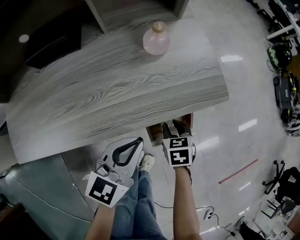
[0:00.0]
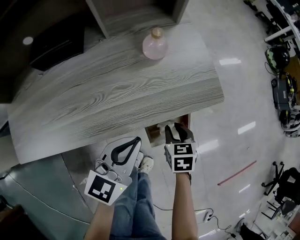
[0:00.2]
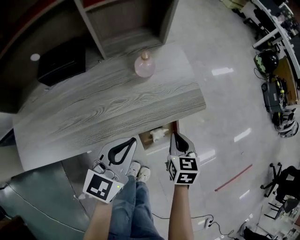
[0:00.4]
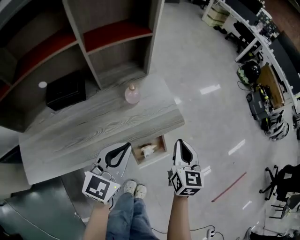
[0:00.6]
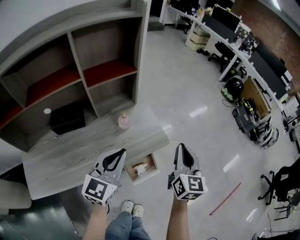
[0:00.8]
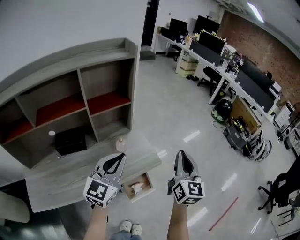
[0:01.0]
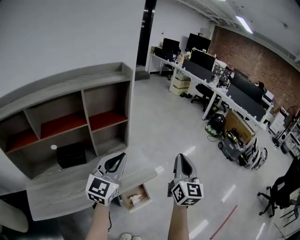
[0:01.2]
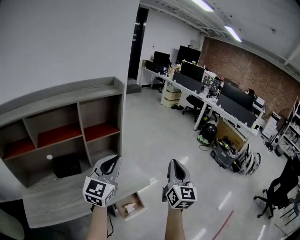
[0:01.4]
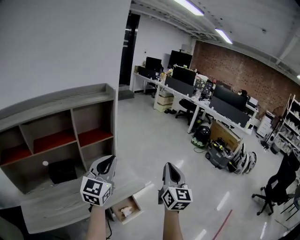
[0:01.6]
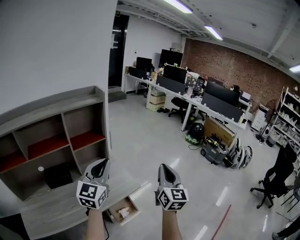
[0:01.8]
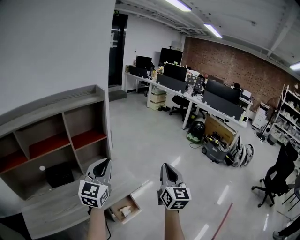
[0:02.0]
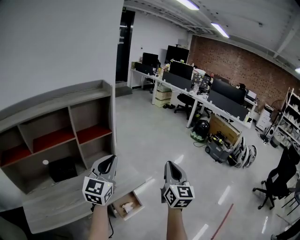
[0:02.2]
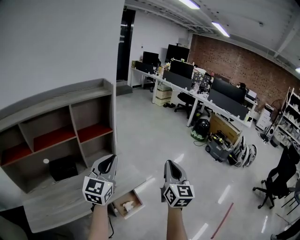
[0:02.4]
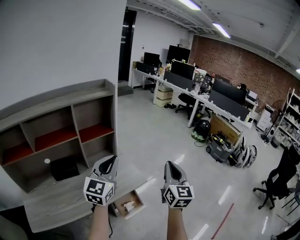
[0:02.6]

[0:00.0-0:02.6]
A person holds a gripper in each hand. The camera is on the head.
0.0 to 1.2 s: Both grippers move upward, roughly 50 cm. The left gripper swivels some 30 degrees. Meanwhile the right gripper points its fingers about 70 degrees further upward, and closes.
1.2 to 2.6 s: The right gripper shifts by about 5 cm.

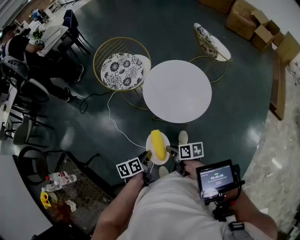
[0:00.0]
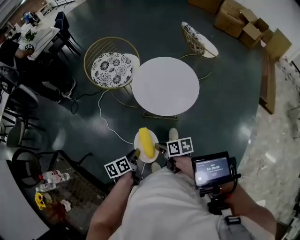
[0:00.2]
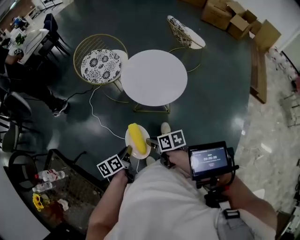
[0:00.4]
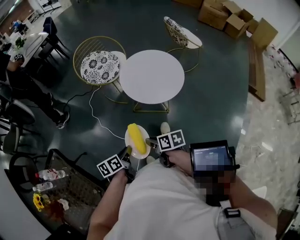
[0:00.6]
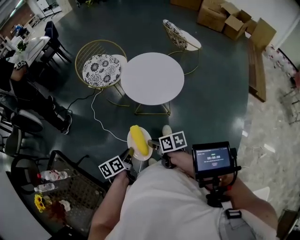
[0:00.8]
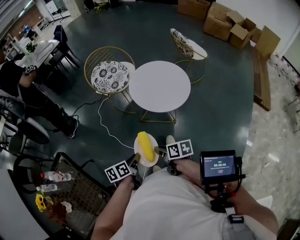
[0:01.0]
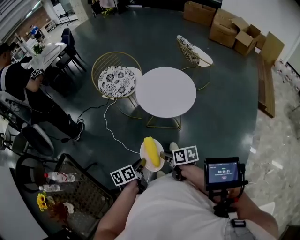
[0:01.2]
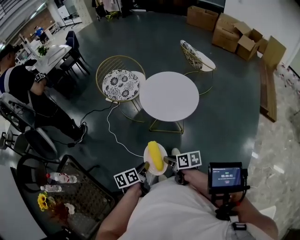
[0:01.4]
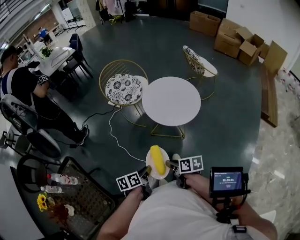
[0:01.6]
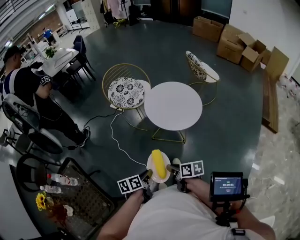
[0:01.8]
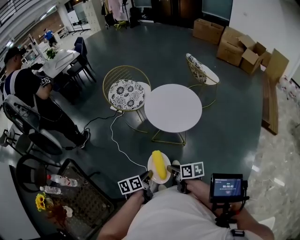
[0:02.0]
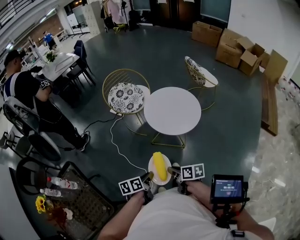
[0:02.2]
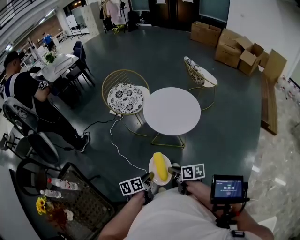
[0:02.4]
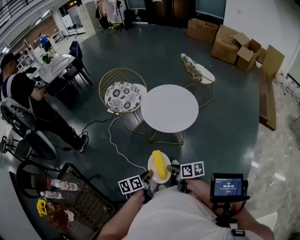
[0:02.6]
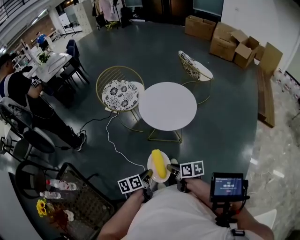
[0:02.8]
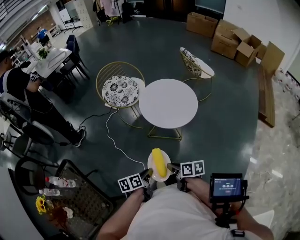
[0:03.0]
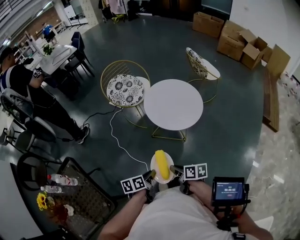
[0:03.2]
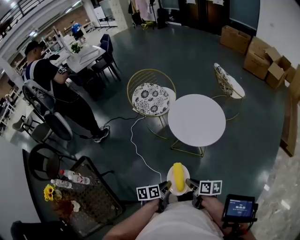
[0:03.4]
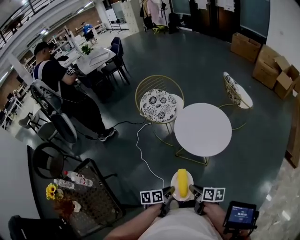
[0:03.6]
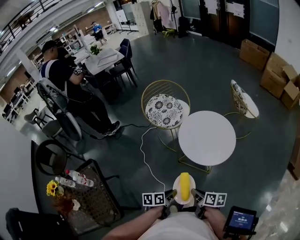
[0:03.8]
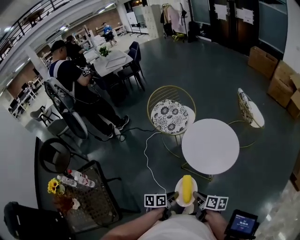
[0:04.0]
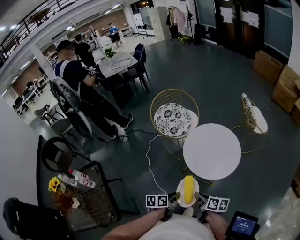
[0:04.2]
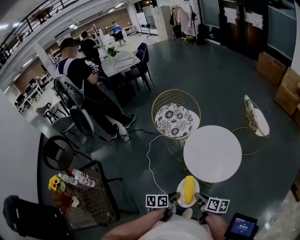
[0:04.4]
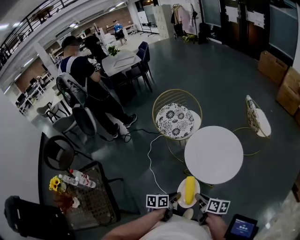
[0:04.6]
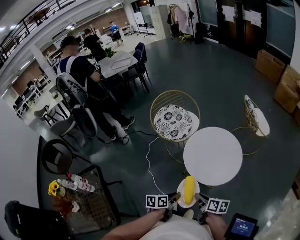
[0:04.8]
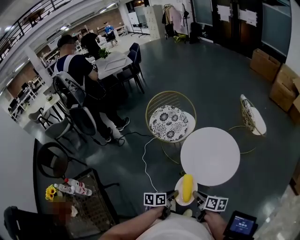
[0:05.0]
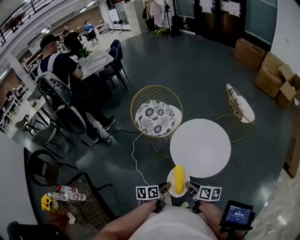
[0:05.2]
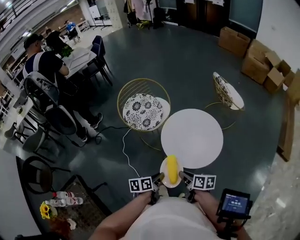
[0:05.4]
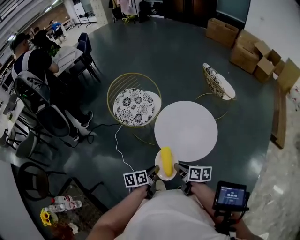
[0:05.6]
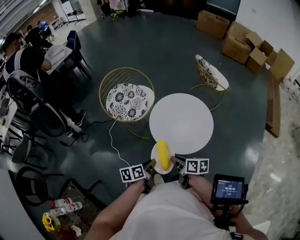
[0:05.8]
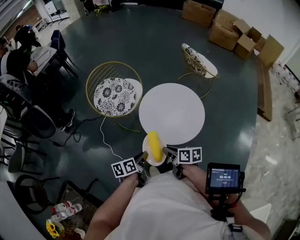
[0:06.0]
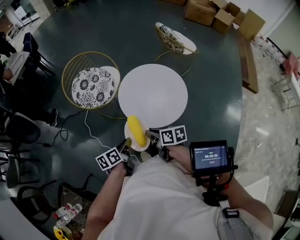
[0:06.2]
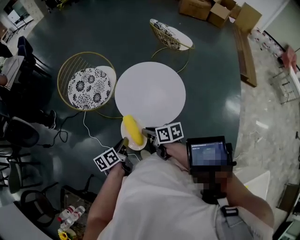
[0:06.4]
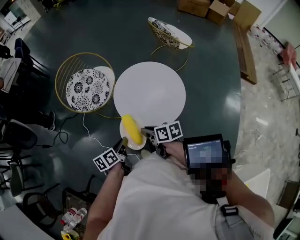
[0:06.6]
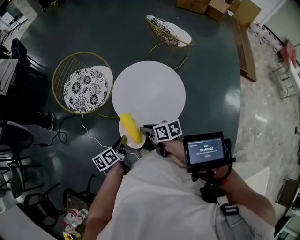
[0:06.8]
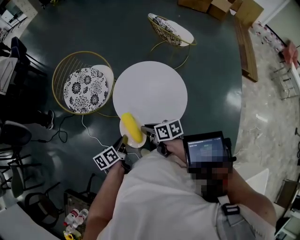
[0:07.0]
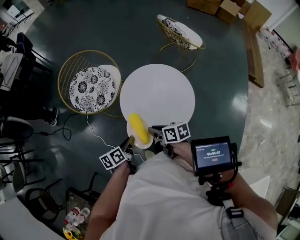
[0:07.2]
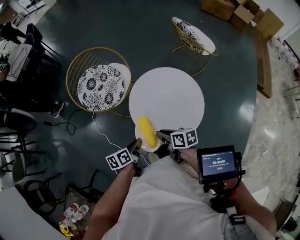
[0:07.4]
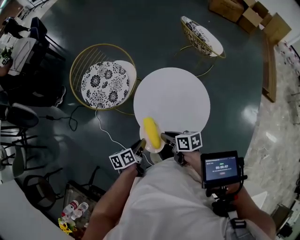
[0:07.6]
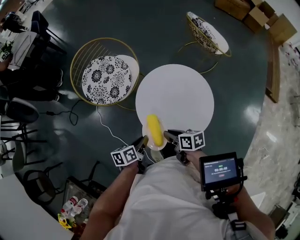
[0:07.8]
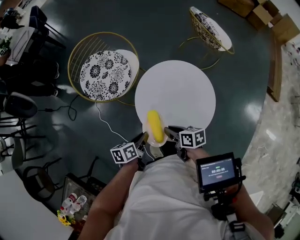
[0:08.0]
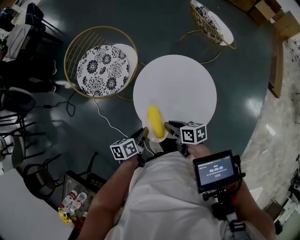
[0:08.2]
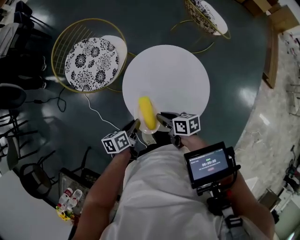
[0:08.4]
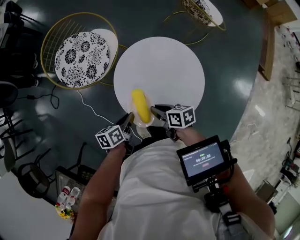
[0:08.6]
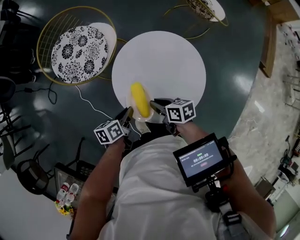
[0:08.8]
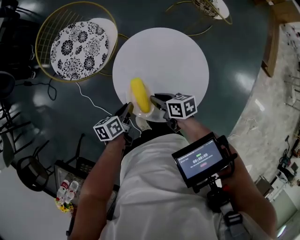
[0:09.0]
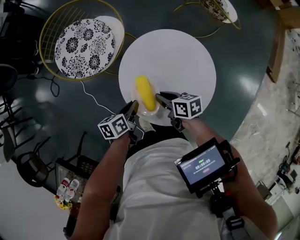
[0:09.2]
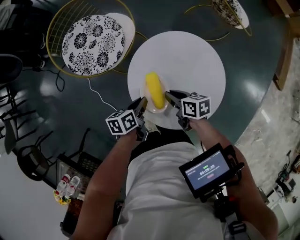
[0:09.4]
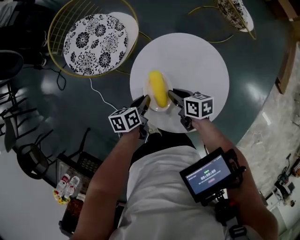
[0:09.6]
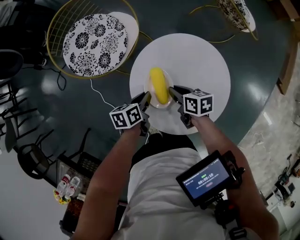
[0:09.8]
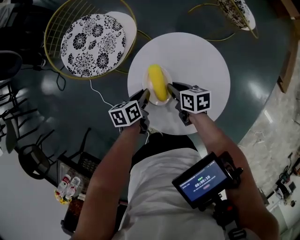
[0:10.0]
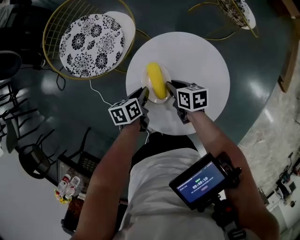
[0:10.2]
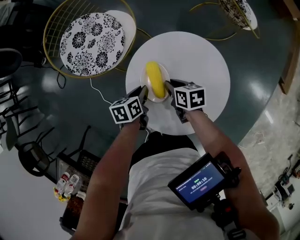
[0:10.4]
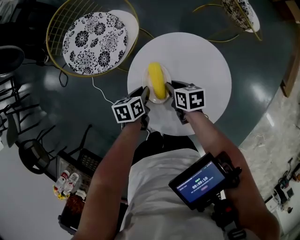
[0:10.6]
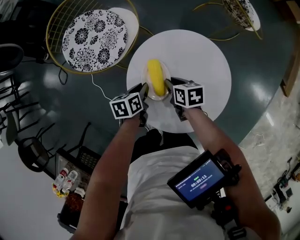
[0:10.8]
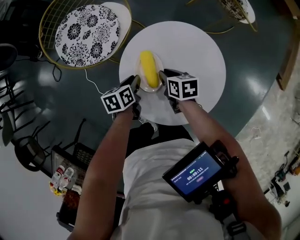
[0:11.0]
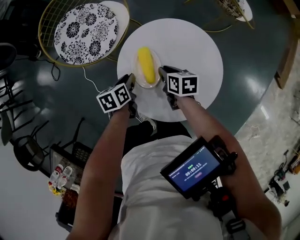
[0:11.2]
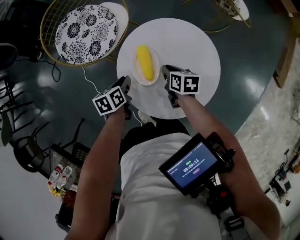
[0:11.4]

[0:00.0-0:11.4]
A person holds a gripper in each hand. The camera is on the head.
0.0 to 1.4 s: The right gripper is displaced backward and upward by approximately 15 cm; the left gripper is displaced backward by roughly 15 cm.
1.4 to 2.8 s: The grippers make only small movements.
2.8 to 4.2 s: Both grippers travel together forward and to the right, roughly 10 cm.
4.2 to 5.6 s: Both grippers move forward, roughly 15 cm.
5.6 to 7.2 s: The grippers both shift forward by roughly 10 cm.
7.2 to 8.6 s: Both grippers travel together downward and forward, approximately 10 cm.
8.6 to 10.0 s: Both grippers move forward and downward, approximately 15 cm.
10.0 to 11.4 s: The grippers make only small movements.

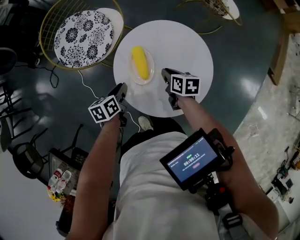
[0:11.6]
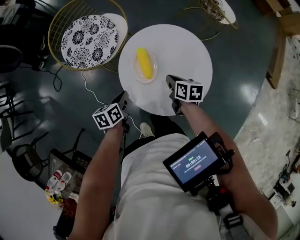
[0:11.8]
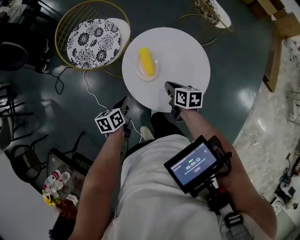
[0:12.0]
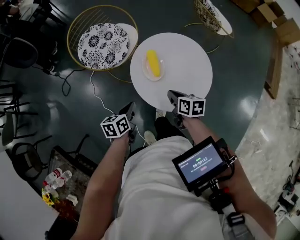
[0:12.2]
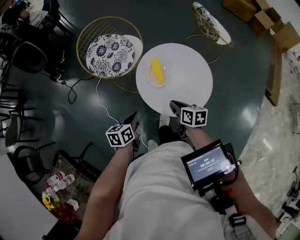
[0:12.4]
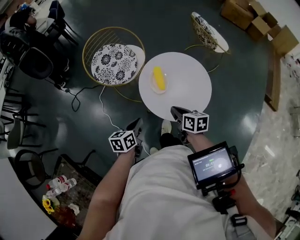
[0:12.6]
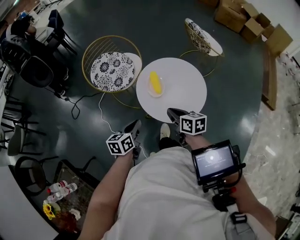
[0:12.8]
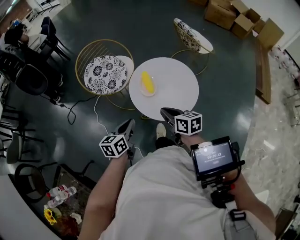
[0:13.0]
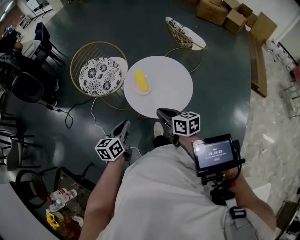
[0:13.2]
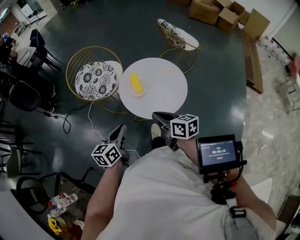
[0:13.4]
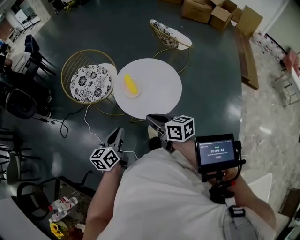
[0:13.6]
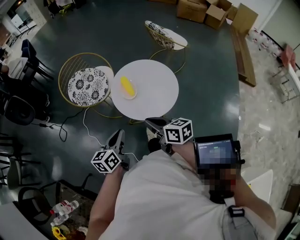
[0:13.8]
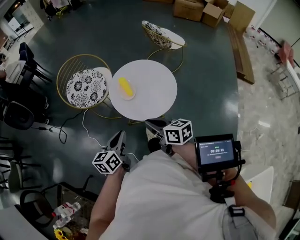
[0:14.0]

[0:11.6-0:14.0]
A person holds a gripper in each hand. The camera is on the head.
11.6 to 12.8 s: The two grippers go some 25 cm backward and upward. The left gripper swivels about 20 degrees. The right gripper changes its angle by roughly 20 degrees.
12.8 to 14.0 s: The two grippers go approximately 10 cm backward and upward.

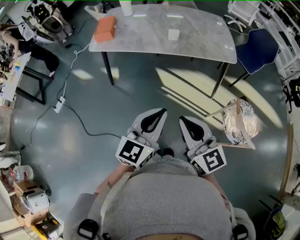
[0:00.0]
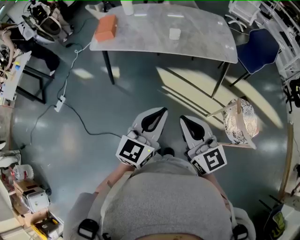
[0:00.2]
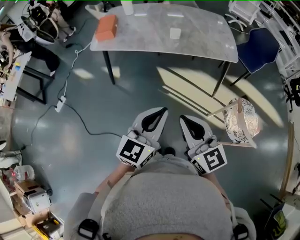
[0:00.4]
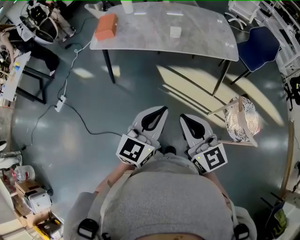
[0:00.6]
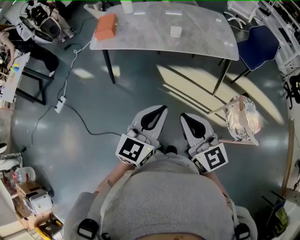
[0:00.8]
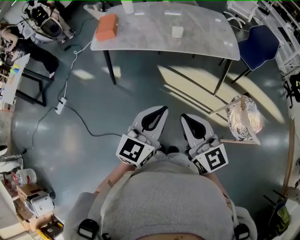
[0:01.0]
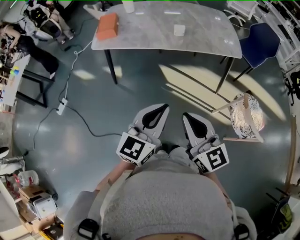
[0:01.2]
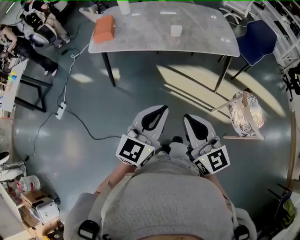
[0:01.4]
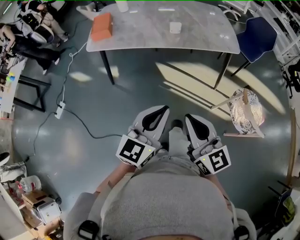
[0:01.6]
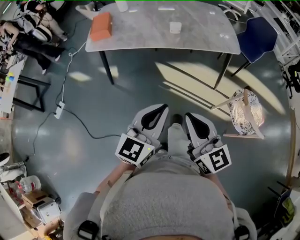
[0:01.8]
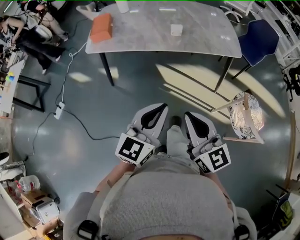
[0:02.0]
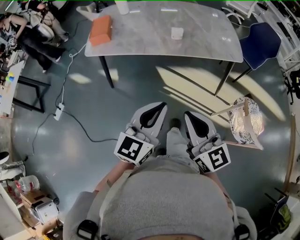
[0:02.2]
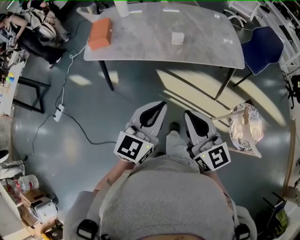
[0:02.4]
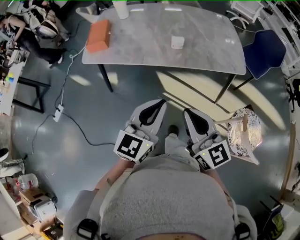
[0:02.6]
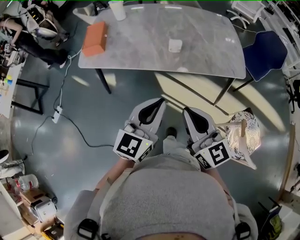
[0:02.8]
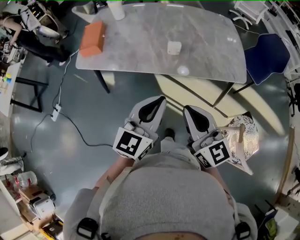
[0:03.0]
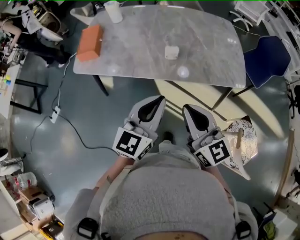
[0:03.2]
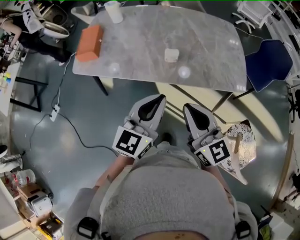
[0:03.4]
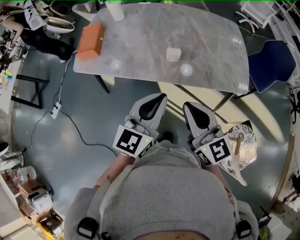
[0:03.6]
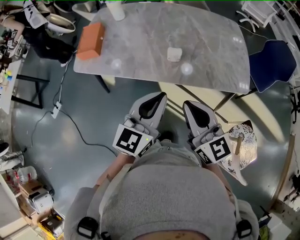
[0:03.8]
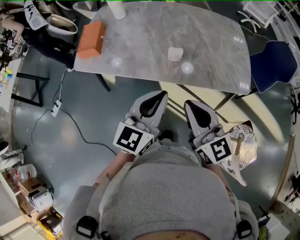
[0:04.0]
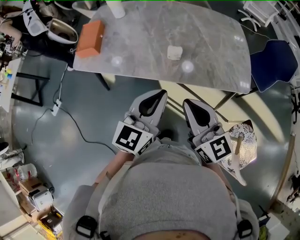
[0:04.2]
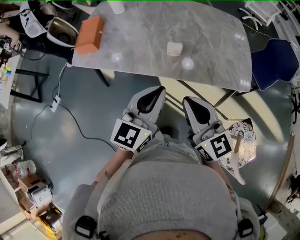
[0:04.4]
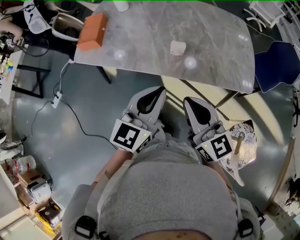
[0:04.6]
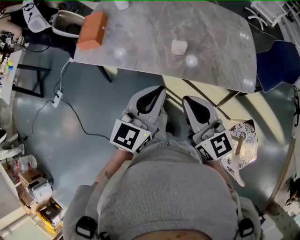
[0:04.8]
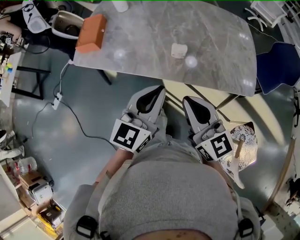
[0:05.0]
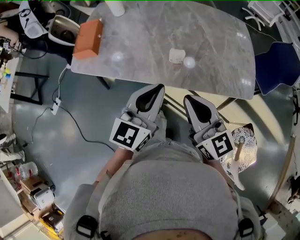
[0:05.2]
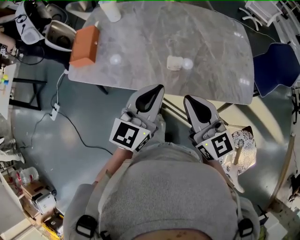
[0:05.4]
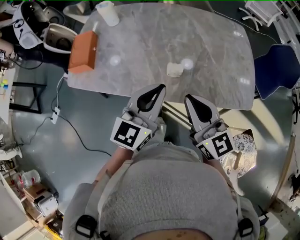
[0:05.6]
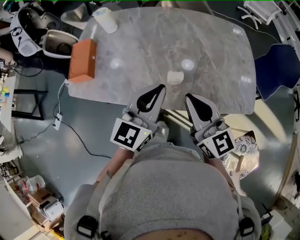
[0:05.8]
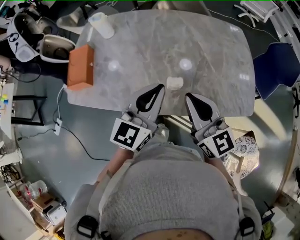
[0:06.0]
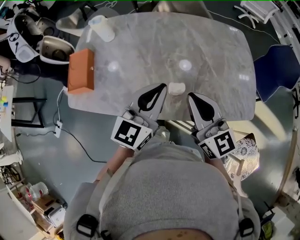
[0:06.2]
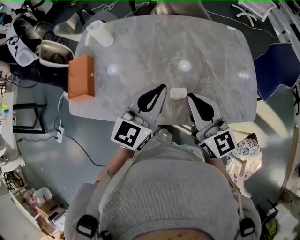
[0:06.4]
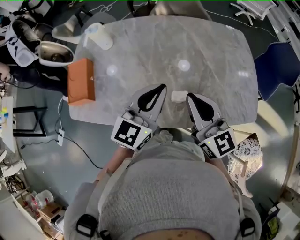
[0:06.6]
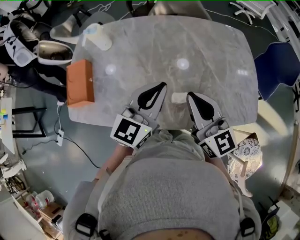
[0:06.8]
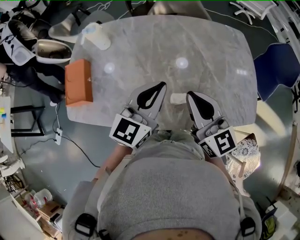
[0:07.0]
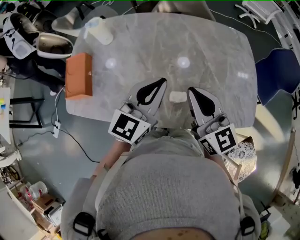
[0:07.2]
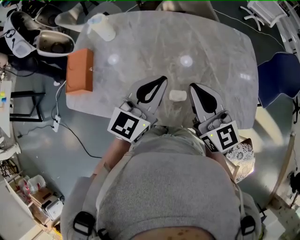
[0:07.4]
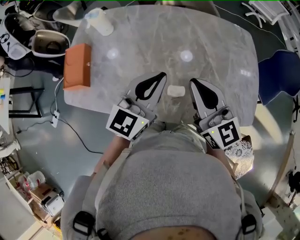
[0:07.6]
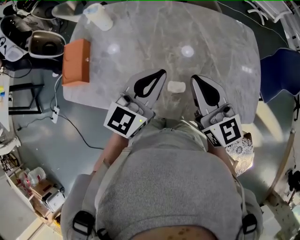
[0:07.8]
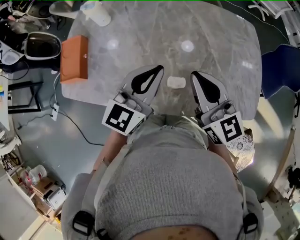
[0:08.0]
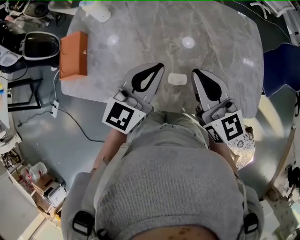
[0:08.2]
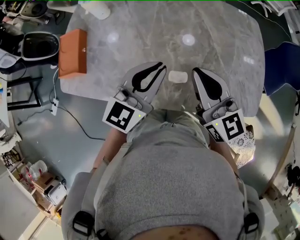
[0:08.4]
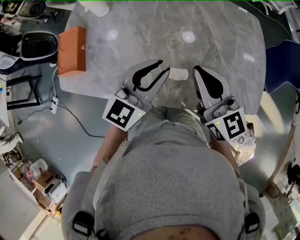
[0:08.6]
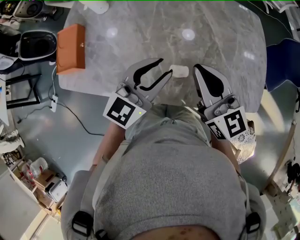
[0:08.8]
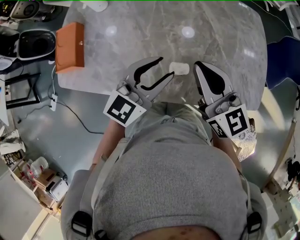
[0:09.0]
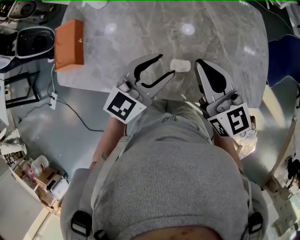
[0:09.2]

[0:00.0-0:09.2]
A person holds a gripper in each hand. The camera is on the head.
0.0 to 1.6 s: The grippers make only small movements.
1.6 to 3.0 s: Both grippers travel together forward, about 25 cm.
3.0 to 4.6 s: Both grippers travel together forward, about 5 cm.
4.6 to 6.2 s: The grippers both shift forward by roughly 20 cm.
6.2 to 7.6 s: Both grippers move forward, some 5 cm.
7.6 to 9.2 s: The left gripper heads downward, covering approximately 5 cm, and opens its fingers.
